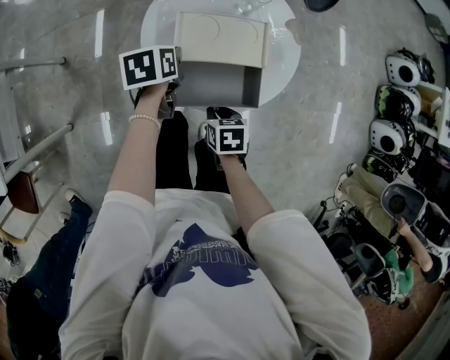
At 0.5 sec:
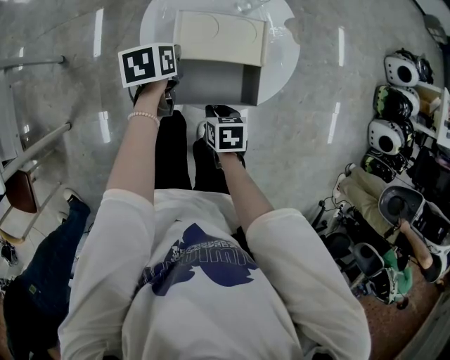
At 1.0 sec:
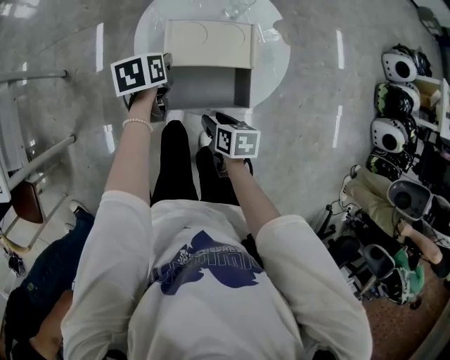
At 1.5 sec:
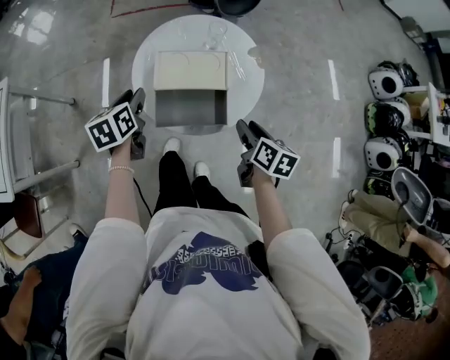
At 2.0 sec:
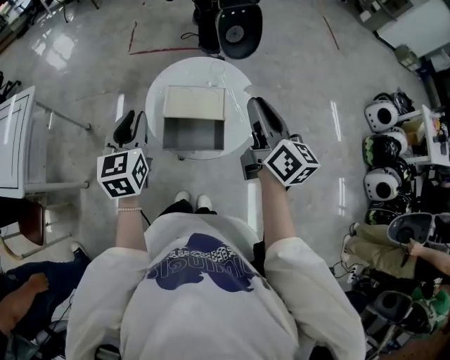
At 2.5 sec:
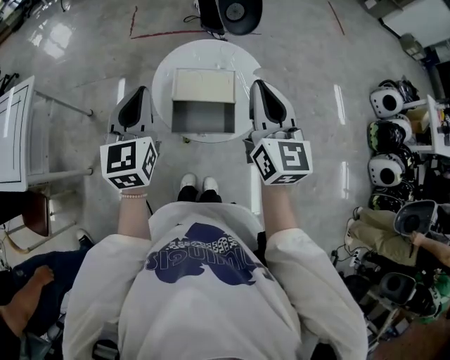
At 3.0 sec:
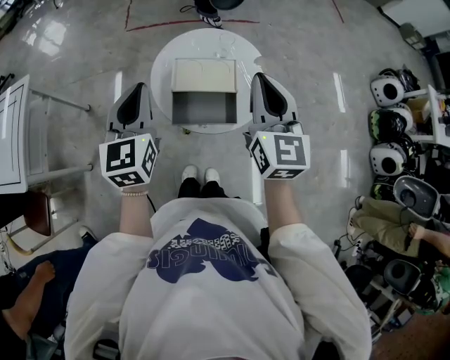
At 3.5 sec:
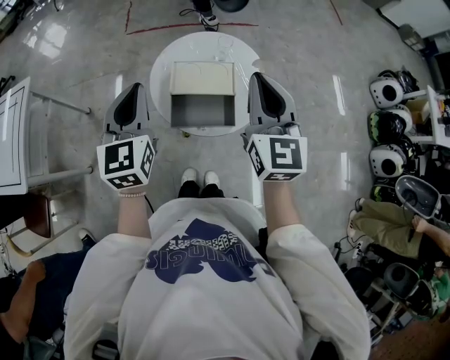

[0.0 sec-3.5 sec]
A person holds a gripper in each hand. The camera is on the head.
0.0 sec to 2.0 sec: The right gripper travels upward by about 40 cm, points its fingers some 60 degrees further upward, and opens, then closes again, while the left gripper goes roughly 35 cm upward and backward, and tips its fingers upward by approximately 40 degrees.
2.0 sec to 3.5 sec: The left gripper closes; the right gripper is displaced to the left by approximately 5 cm, and turns by roughly 40 degrees.

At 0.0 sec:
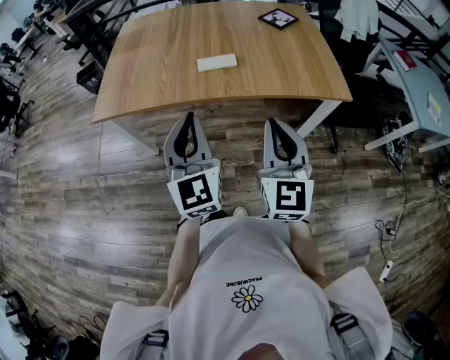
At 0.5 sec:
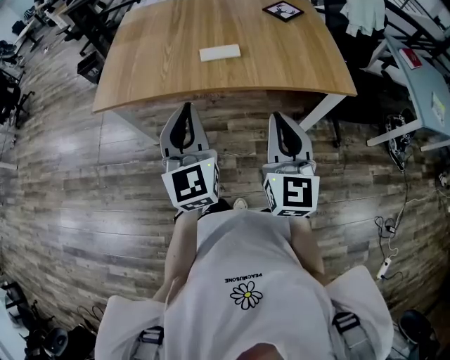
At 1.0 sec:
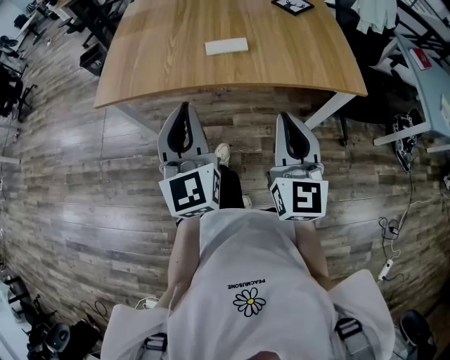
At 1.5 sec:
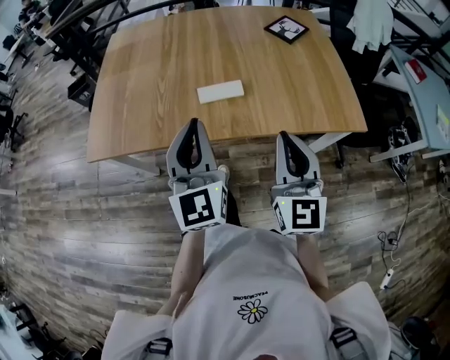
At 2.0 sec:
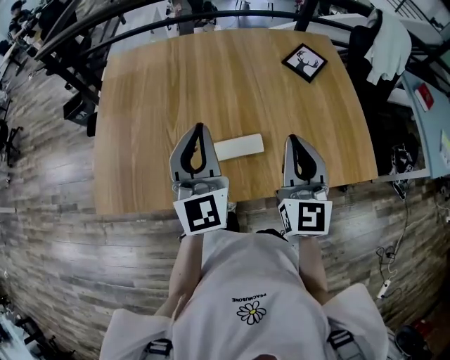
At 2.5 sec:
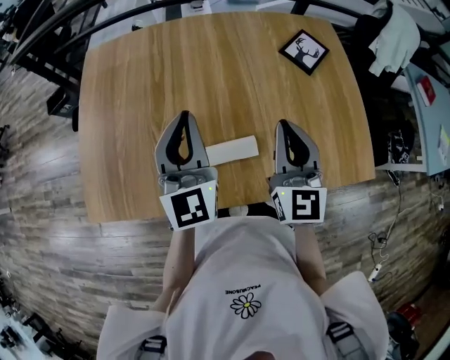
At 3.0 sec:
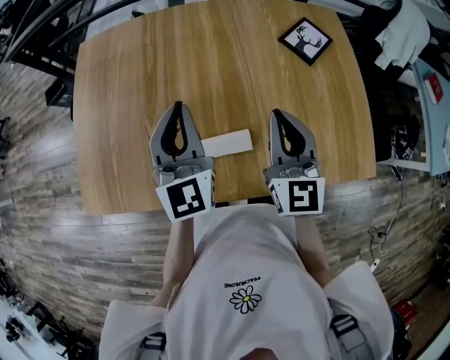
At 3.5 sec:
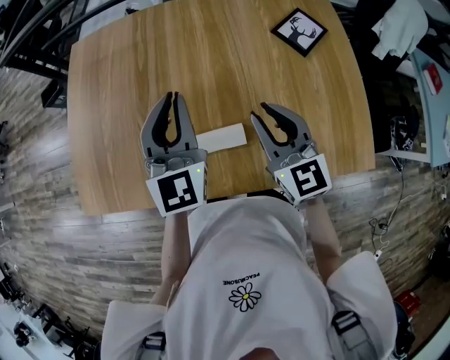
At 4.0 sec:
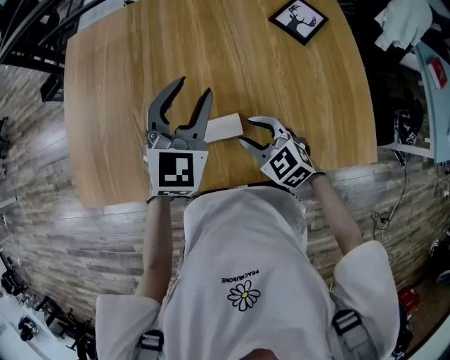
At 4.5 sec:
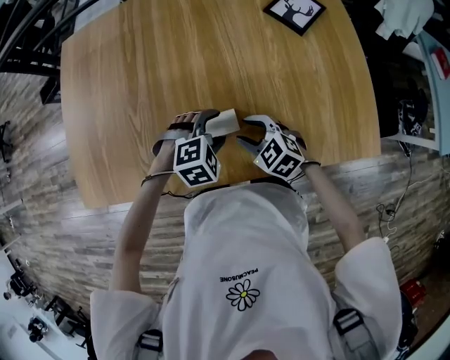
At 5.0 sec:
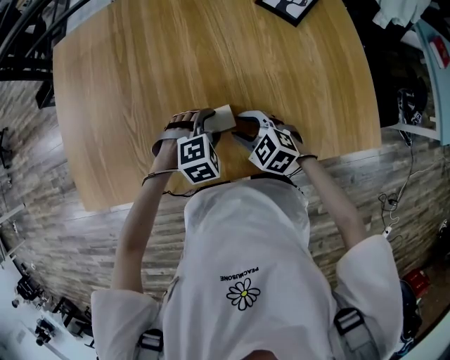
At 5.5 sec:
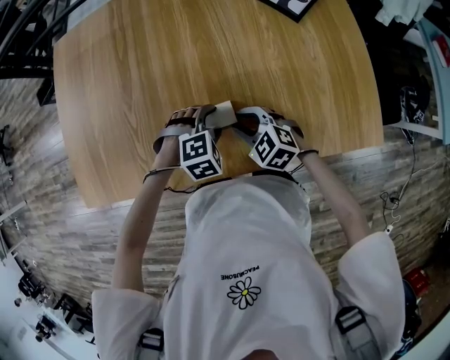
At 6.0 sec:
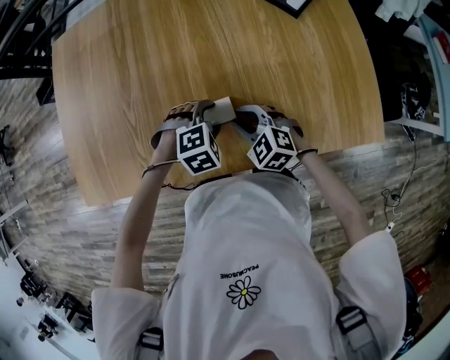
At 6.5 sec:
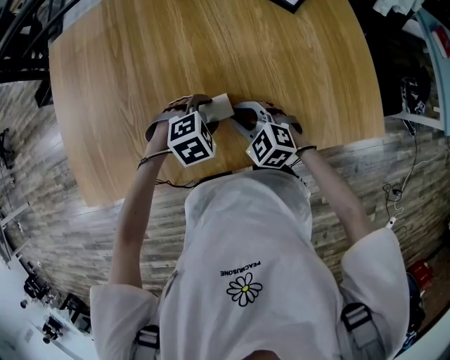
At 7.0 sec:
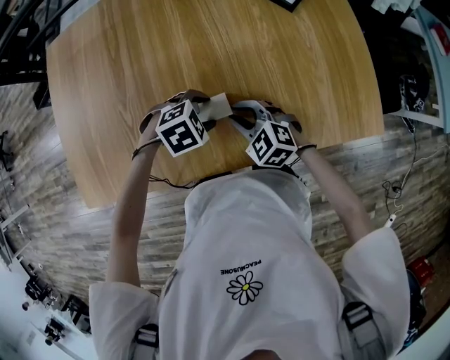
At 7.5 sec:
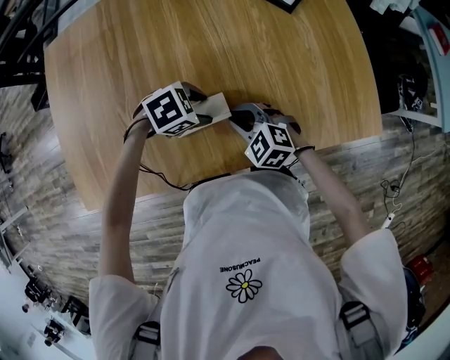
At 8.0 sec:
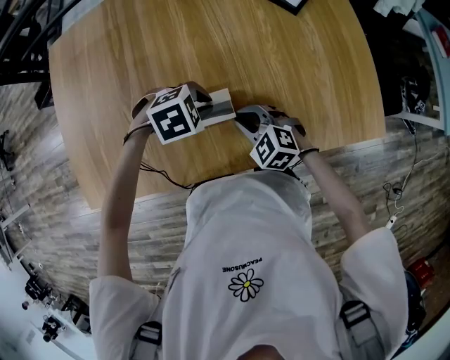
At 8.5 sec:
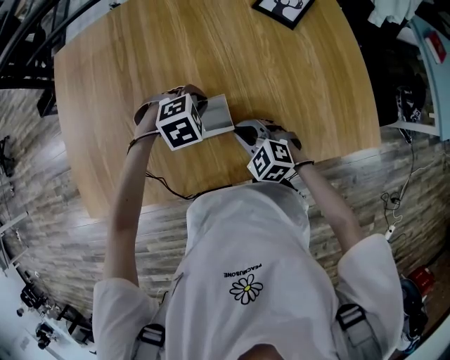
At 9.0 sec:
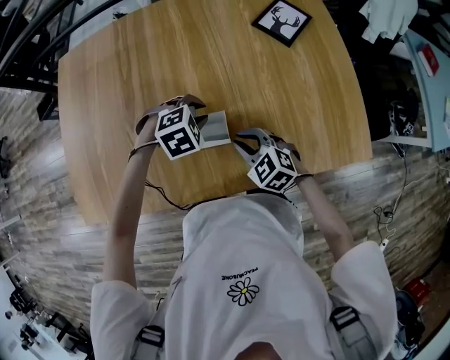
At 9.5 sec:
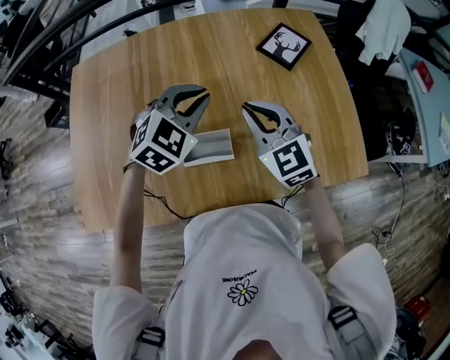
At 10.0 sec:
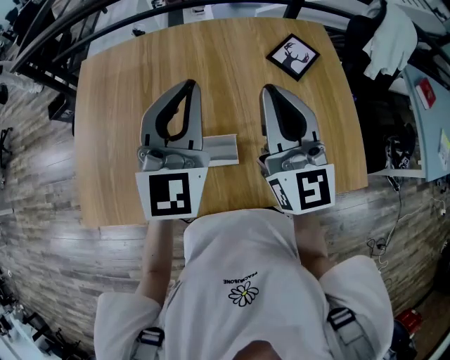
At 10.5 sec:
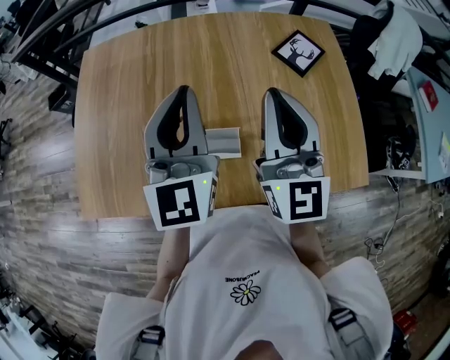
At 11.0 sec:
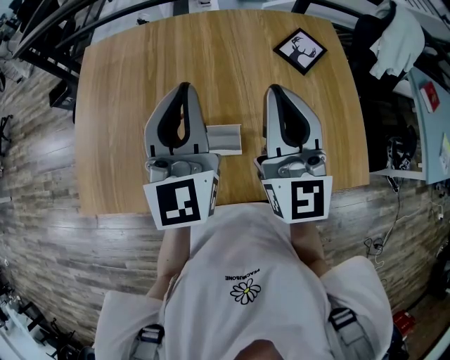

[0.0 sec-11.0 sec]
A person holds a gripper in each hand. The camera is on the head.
0.0 sec to 2.0 sec: The two grippers go some 35 cm forward.
2.0 sec to 3.5 sec: The left gripper moves forward, about 10 cm, while the right gripper shifts approximately 10 cm forward and downward, and turns by approximately 30 degrees.
3.5 sec to 5.5 sec: The two grippers go roughly 25 cm downward. The left gripper points its fingers some 70 degrees further downward, and opens up; the right gripper tips its fingers downward by approximately 40 degrees.
5.5 sec to 7.5 sec: The left gripper changes its angle by roughly 30 degrees.
7.5 sec to 9.0 sec: The left gripper moves about 5 cm, turns by approximately 30 degrees, and closes.
9.0 sec to 11.0 sec: The two grippers go about 35 cm upward. The left gripper tips its fingers upward by roughly 70 degrees. Meanwhile the right gripper tilts its fingers roughly 60 degrees upward.

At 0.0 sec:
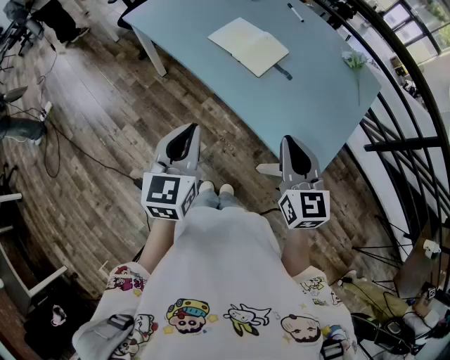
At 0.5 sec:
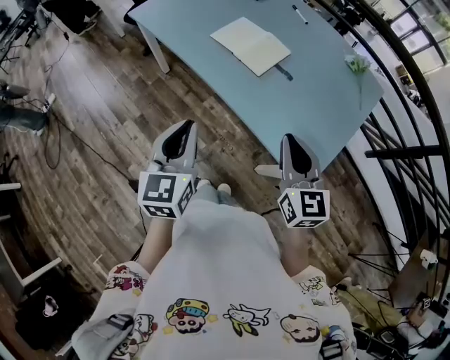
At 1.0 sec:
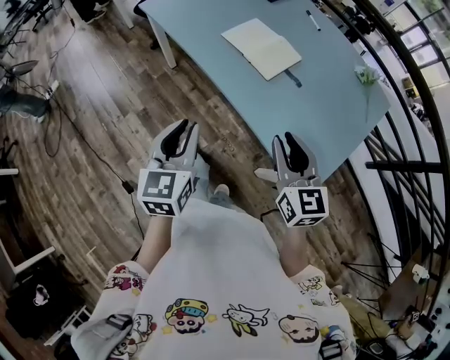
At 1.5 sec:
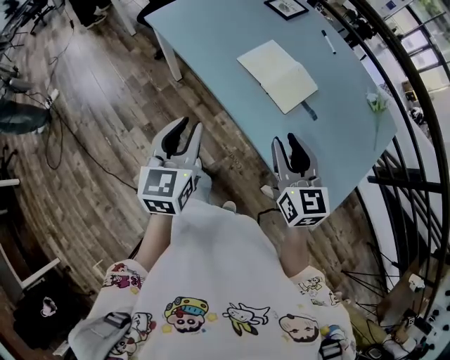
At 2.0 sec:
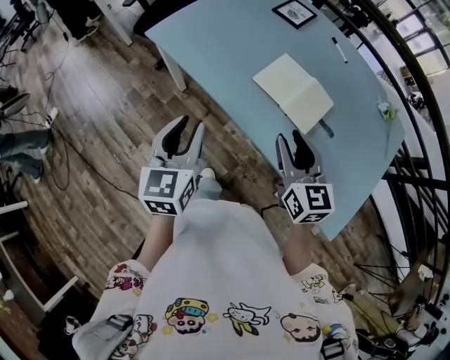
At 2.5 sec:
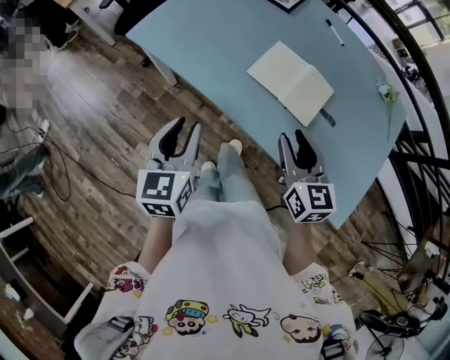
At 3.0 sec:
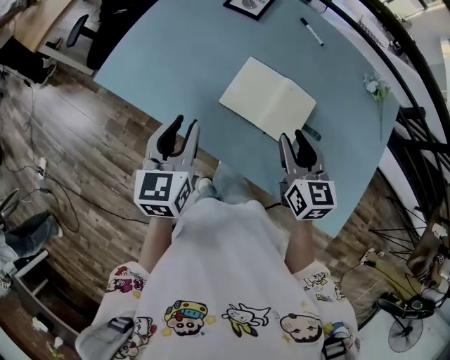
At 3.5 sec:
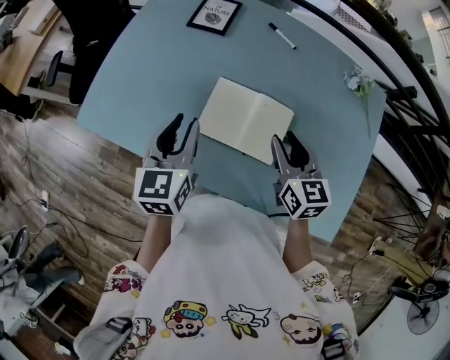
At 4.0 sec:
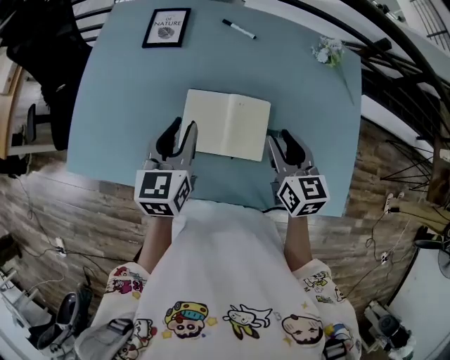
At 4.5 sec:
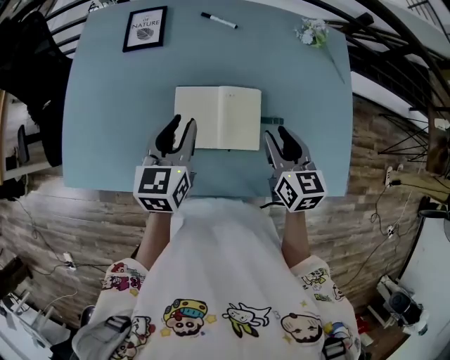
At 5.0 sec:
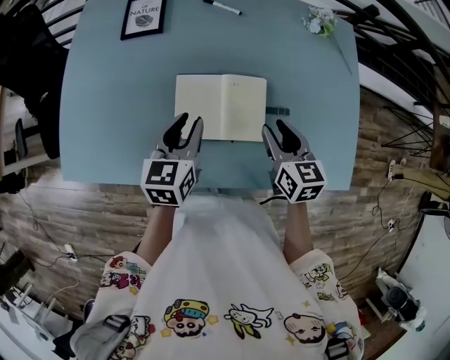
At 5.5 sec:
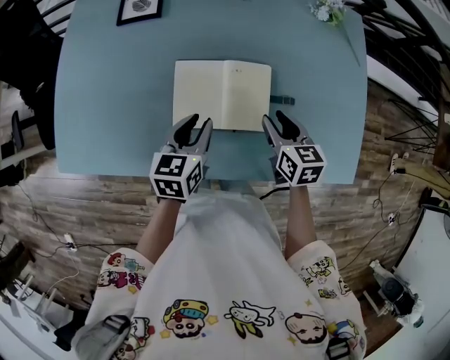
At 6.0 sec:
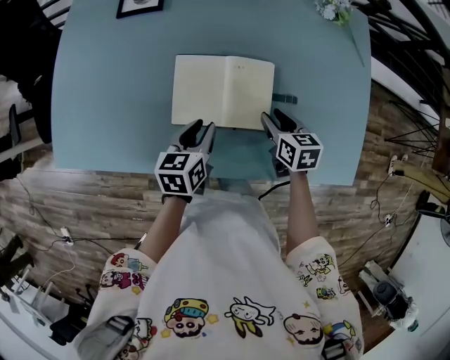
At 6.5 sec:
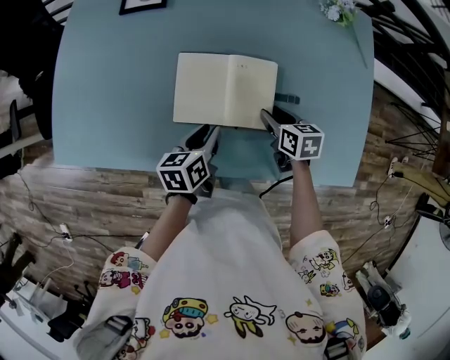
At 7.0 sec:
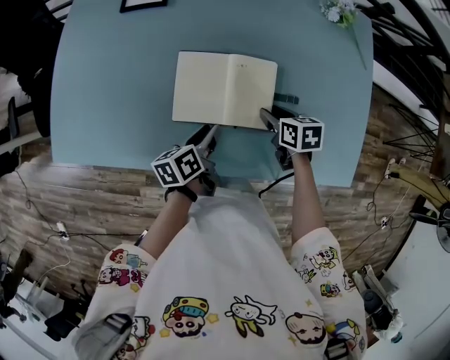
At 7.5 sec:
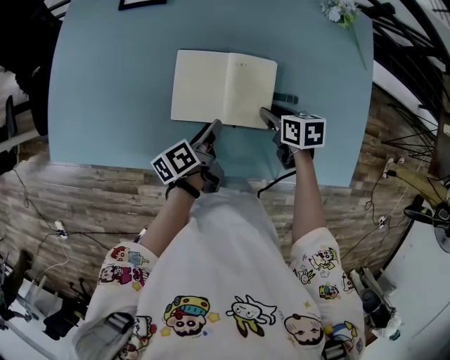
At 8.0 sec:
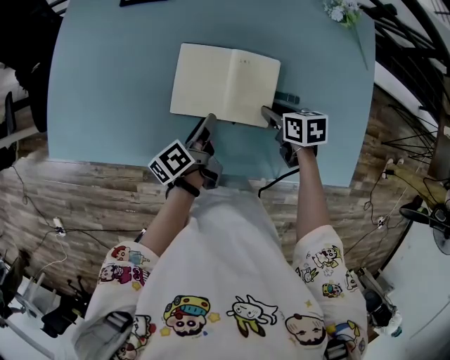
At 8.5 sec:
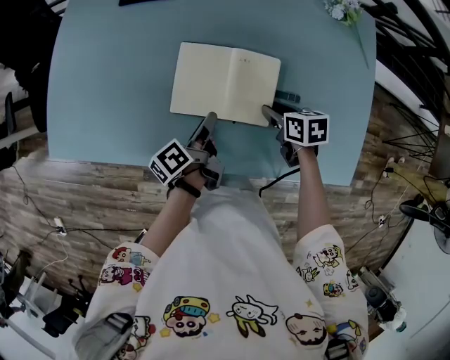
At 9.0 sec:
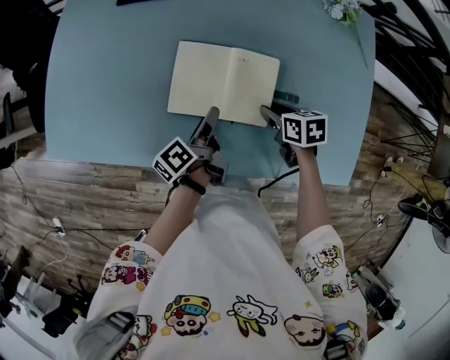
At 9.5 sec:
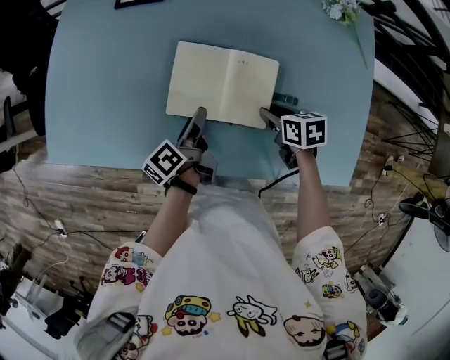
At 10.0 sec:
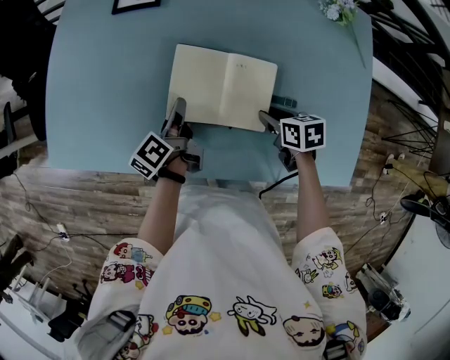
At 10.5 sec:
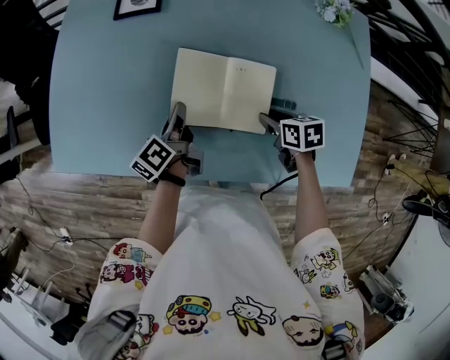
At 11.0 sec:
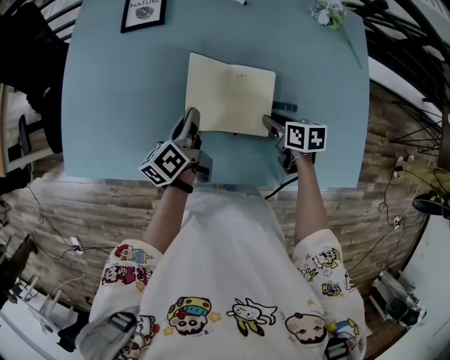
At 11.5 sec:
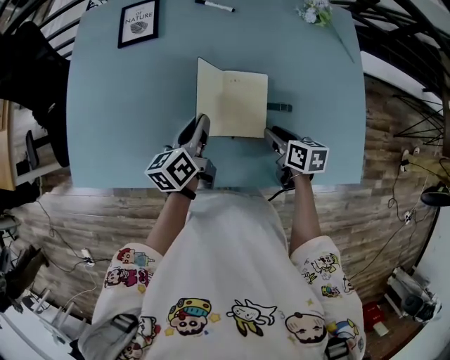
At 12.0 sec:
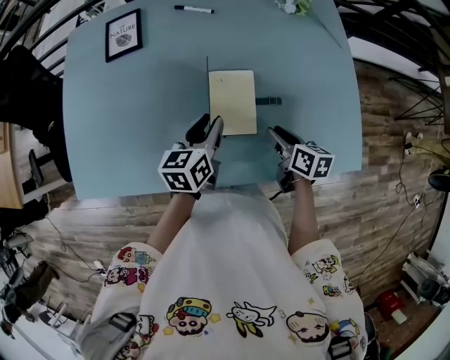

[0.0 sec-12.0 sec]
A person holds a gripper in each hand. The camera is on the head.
0.0 sec to 2.0 sec: Both grippers move forward and to the left, approximately 30 cm. The right gripper opens, while the left gripper opens.
2.0 sec to 4.0 sec: The left gripper moves roughly 35 cm, and turns by some 30 degrees, while the right gripper ends up about 25 cm from where it was, and rotates approximately 40 degrees.
4.0 sec to 6.0 sec: Both grippers travel together downward, about 15 cm. The right gripper changes its angle by approximately 30 degrees; the left gripper swivels about 30 degrees.
6.0 sec to 8.0 sec: The left gripper rotates around the line of its fingers by about 50 degrees, counterclockwise from behind.
8.0 sec to 10.0 sec: The left gripper moves forward and to the left, roughly 10 cm.
10.0 sec to 12.0 sec: The right gripper ends up approximately 10 cm from where it was, and changes its angle by about 40 degrees. Meanwhile the left gripper ends up some 15 cm from where it was, and rolls clockwise, seen from behind, by some 50 degrees.
